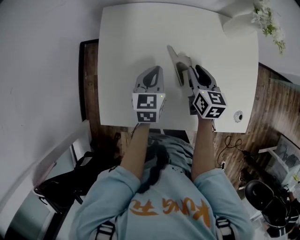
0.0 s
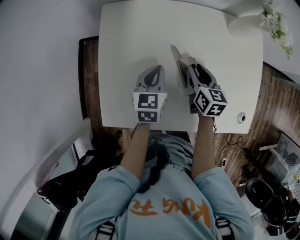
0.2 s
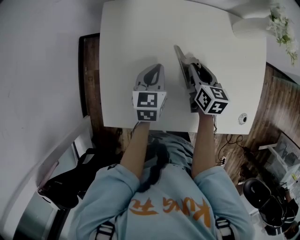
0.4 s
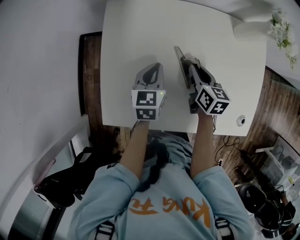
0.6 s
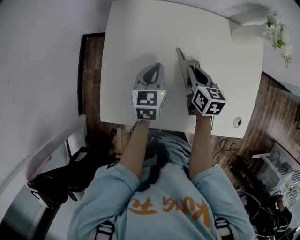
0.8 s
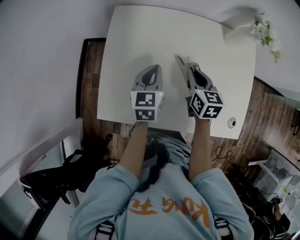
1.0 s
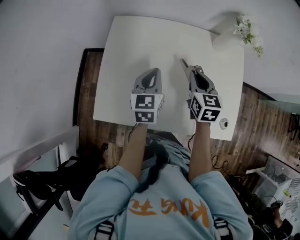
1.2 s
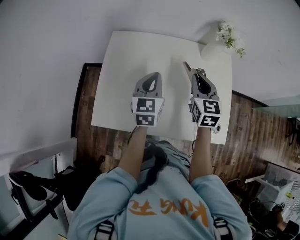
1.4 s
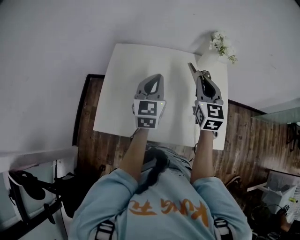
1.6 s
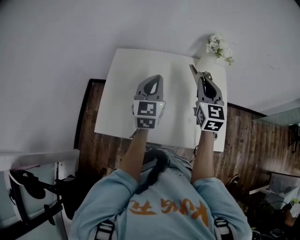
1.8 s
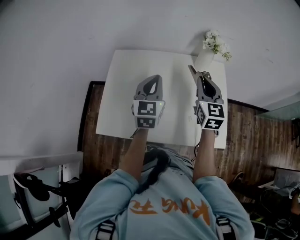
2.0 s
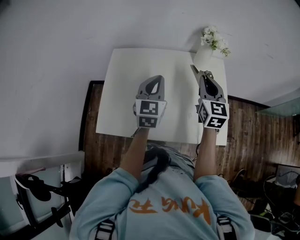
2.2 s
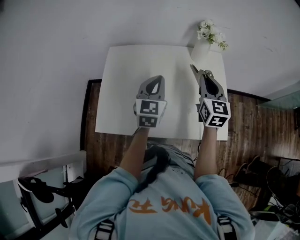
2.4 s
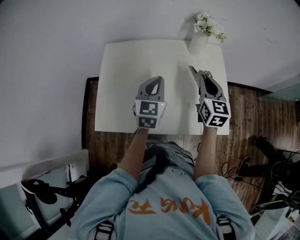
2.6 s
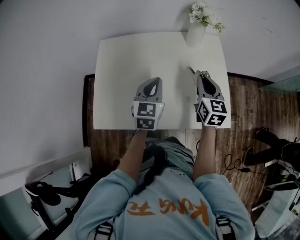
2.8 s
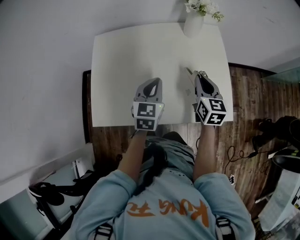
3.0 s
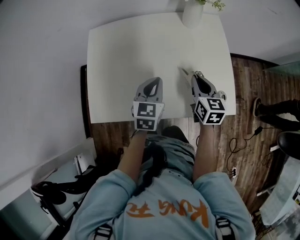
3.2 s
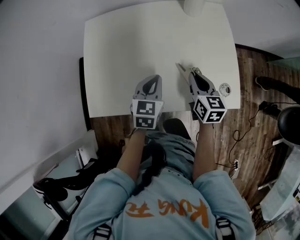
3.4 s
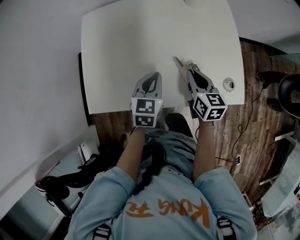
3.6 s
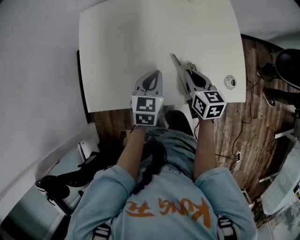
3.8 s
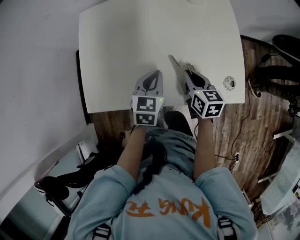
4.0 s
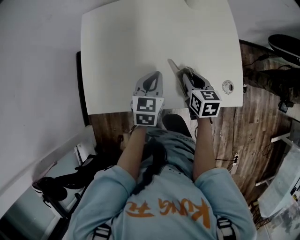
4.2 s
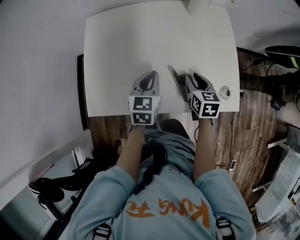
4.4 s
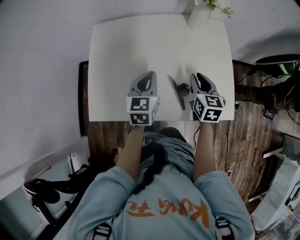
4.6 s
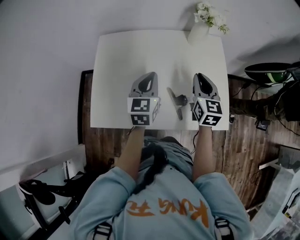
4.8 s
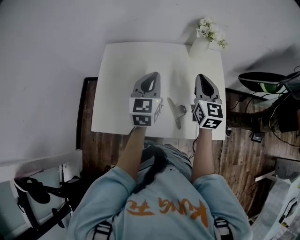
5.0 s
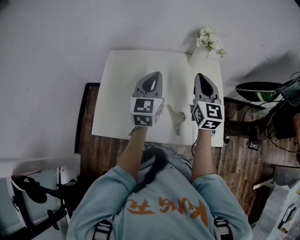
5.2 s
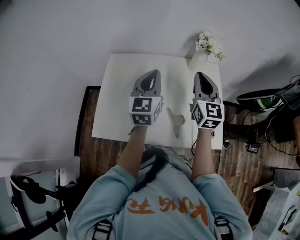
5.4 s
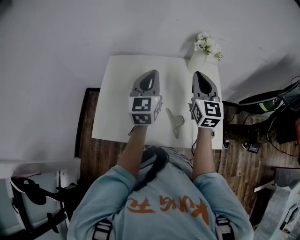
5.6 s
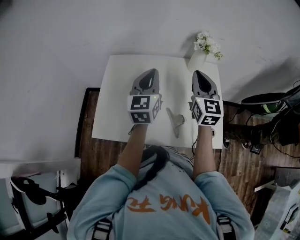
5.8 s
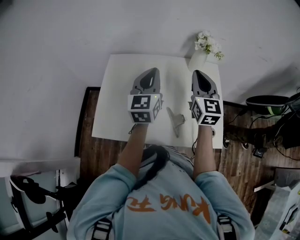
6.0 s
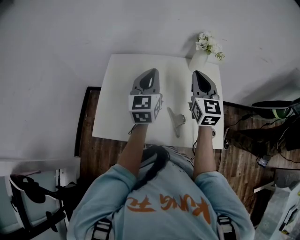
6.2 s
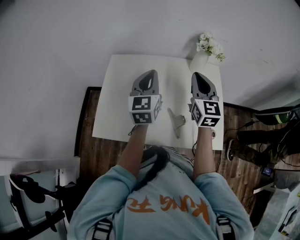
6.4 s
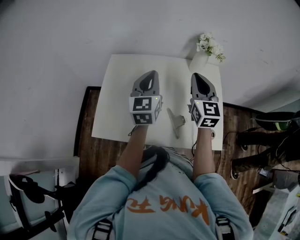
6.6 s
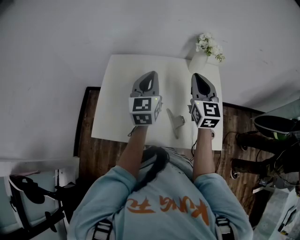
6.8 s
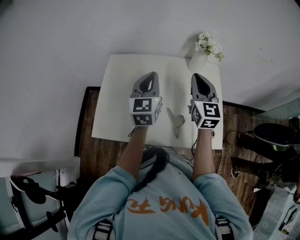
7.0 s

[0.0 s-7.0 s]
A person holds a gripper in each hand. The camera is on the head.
0.0 to 1.4 s: Both grippers travel together upward, approximately 15 cm. The right gripper rotates roughly 30 degrees, and closes its fingers.
1.4 to 2.8 s: The right gripper moves to the right and backward, some 10 cm. Meanwhile the left gripper heads to the right, covering some 10 cm, and goes upward and returns, some 5 cm each way.
2.8 to 4.2 s: Both grippers move downward, approximately 15 cm. The right gripper rotates approximately 30 degrees.
4.2 to 5.6 s: The two grippers go roughly 25 cm upward. The left gripper tips its fingers upward by about 30 degrees, while the right gripper tips its fingers upward by about 40 degrees, and closes its fingers.
5.6 to 7.0 s: The grippers stay close to where they were, moving slightly.

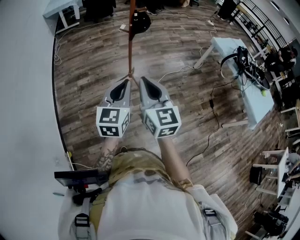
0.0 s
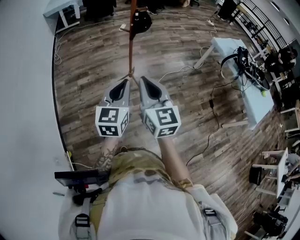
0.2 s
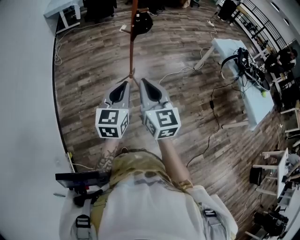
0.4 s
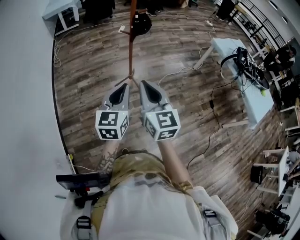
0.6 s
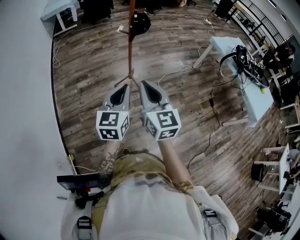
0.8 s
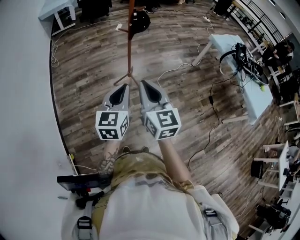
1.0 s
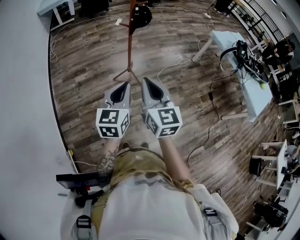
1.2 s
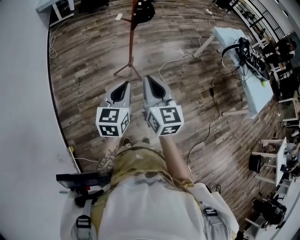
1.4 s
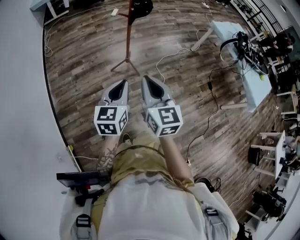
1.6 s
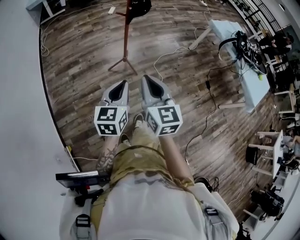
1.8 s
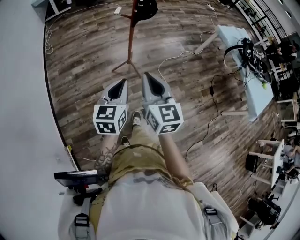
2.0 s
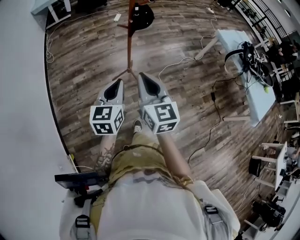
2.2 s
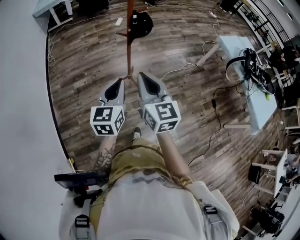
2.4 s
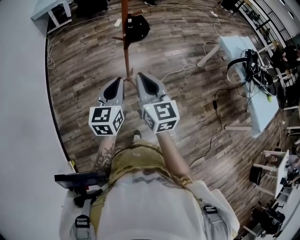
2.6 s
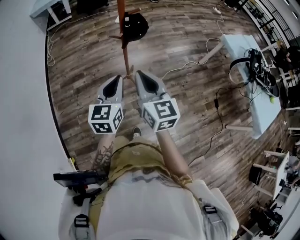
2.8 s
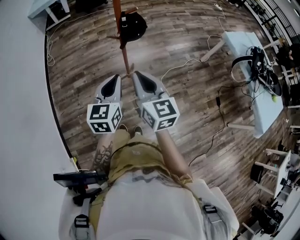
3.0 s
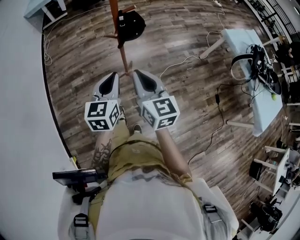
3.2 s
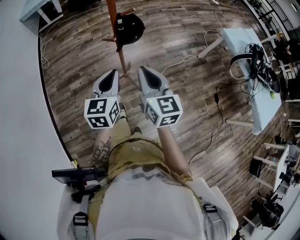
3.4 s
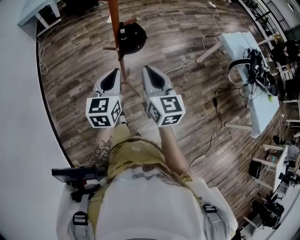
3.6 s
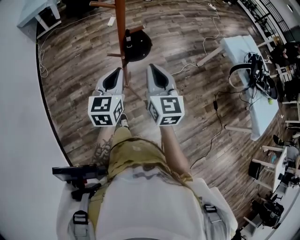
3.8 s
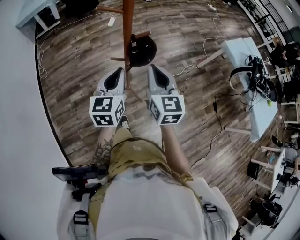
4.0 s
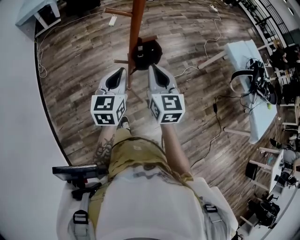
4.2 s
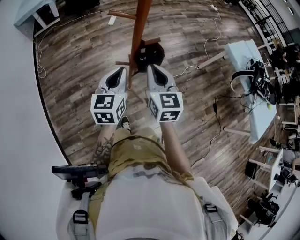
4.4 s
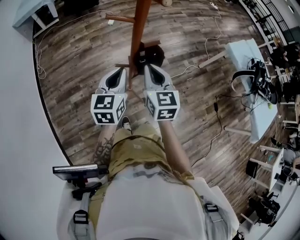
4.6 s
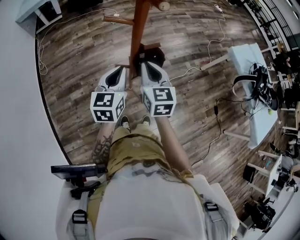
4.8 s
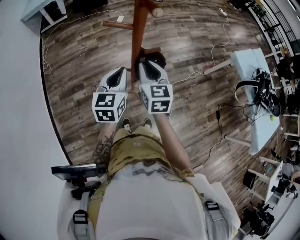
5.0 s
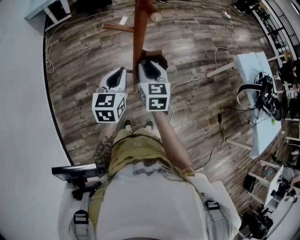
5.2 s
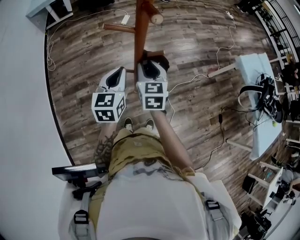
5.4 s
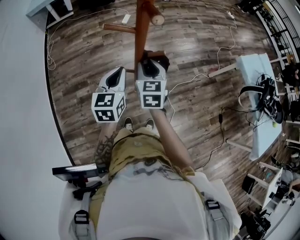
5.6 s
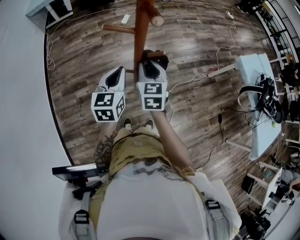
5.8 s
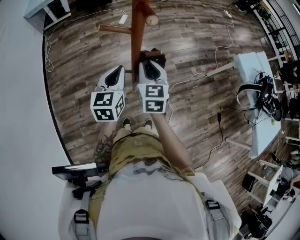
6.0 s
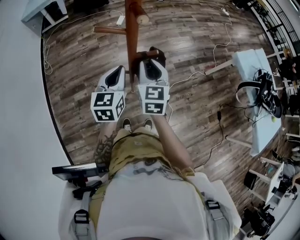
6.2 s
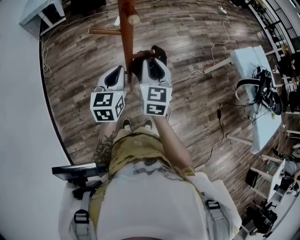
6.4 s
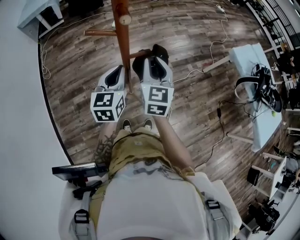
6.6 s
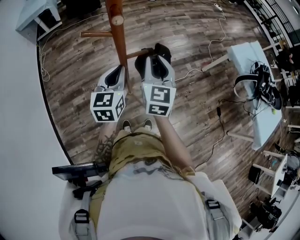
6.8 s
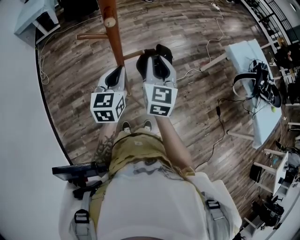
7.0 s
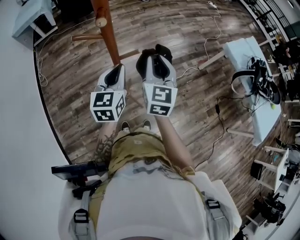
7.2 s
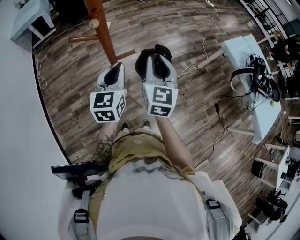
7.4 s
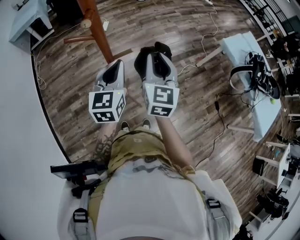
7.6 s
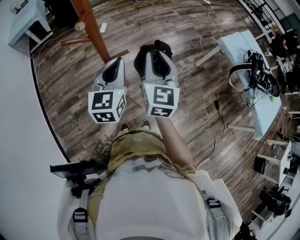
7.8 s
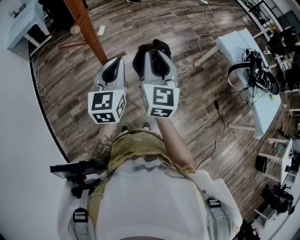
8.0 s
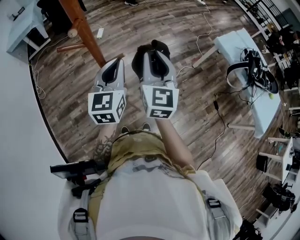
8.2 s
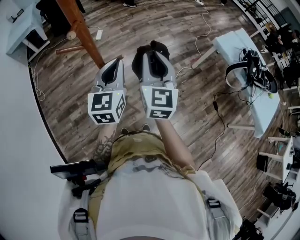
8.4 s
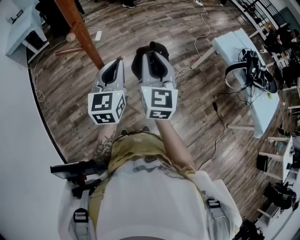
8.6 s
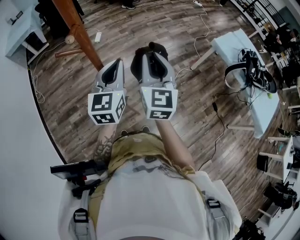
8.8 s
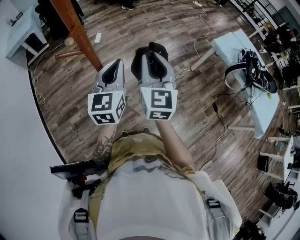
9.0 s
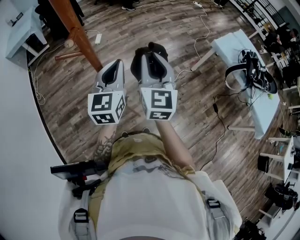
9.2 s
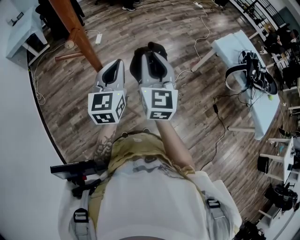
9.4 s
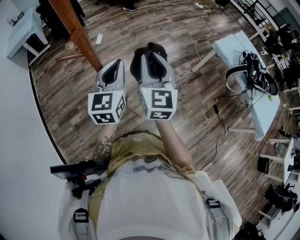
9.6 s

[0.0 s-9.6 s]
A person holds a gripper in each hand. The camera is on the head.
0.0 to 1.6 s: The right gripper travels downward by roughly 5 cm. Meanwhile the left gripper goes approximately 10 cm downward and to the left.
1.6 to 3.2 s: The two grippers go some 30 cm forward.
3.2 to 4.8 s: The two grippers go about 25 cm forward.
4.8 to 6.4 s: The grippers make only small movements.
6.4 to 8.0 s: The grippers both shift to the right and upward by roughly 15 cm.
8.0 to 9.6 s: The grippers stay close to where they were, moving slightly.

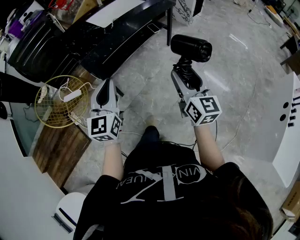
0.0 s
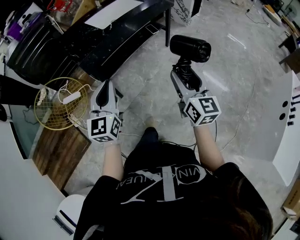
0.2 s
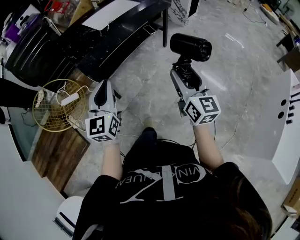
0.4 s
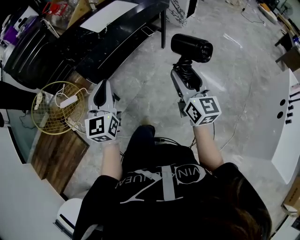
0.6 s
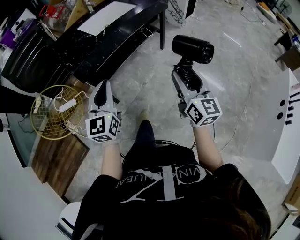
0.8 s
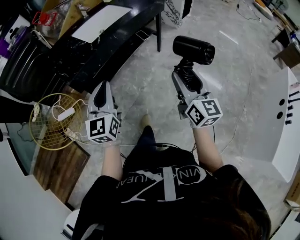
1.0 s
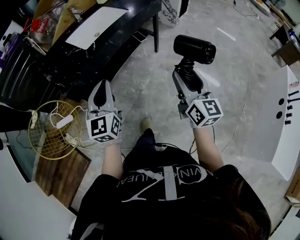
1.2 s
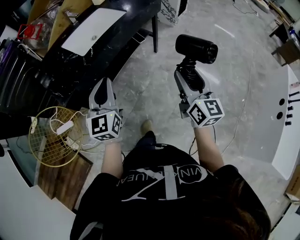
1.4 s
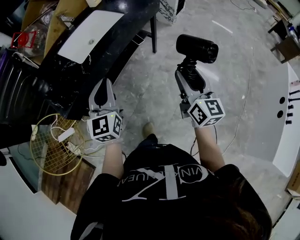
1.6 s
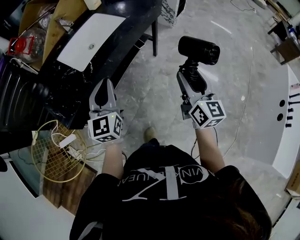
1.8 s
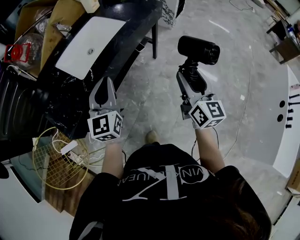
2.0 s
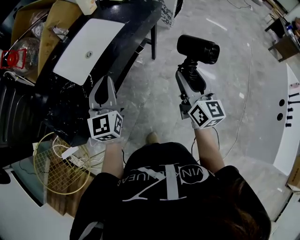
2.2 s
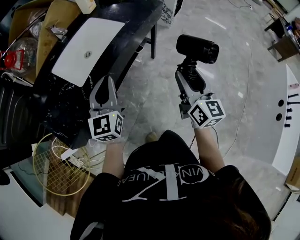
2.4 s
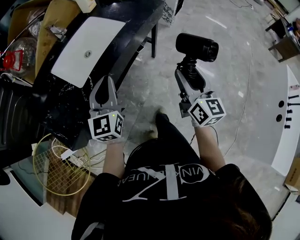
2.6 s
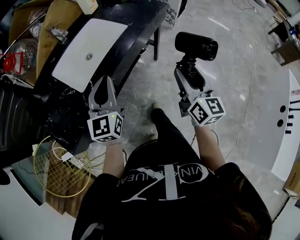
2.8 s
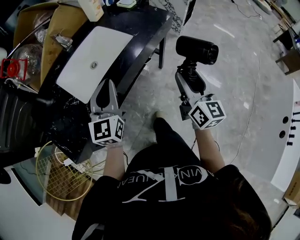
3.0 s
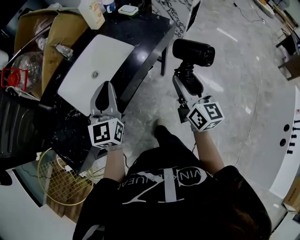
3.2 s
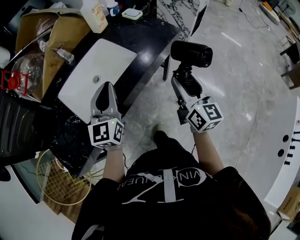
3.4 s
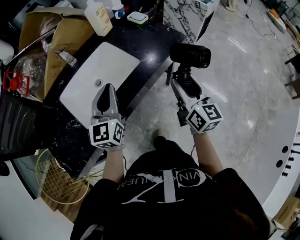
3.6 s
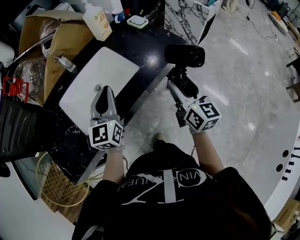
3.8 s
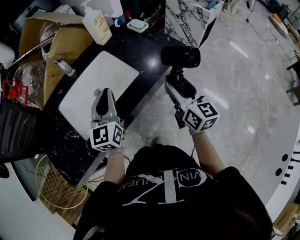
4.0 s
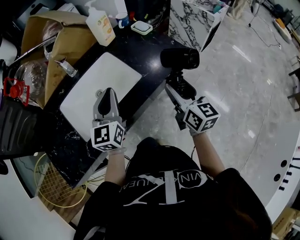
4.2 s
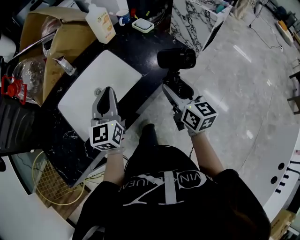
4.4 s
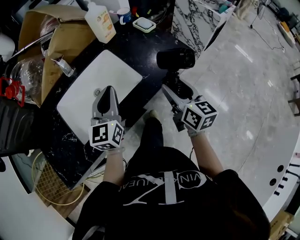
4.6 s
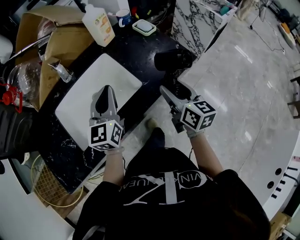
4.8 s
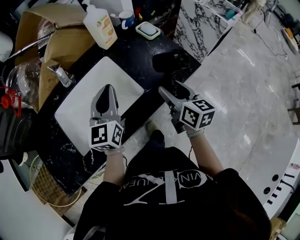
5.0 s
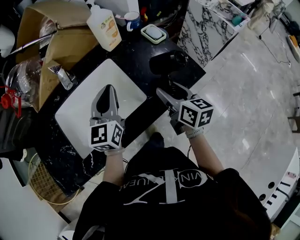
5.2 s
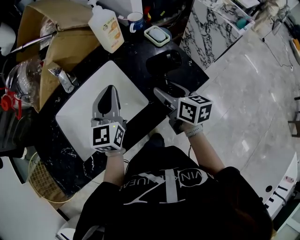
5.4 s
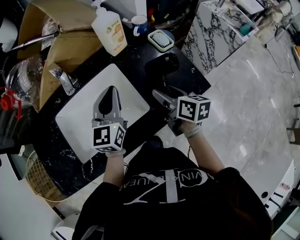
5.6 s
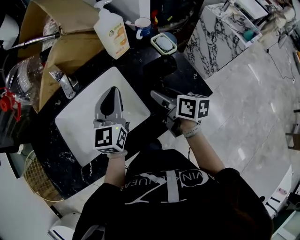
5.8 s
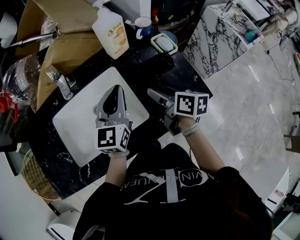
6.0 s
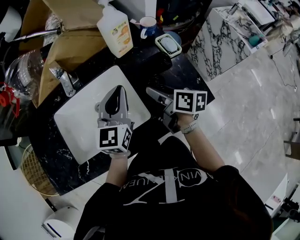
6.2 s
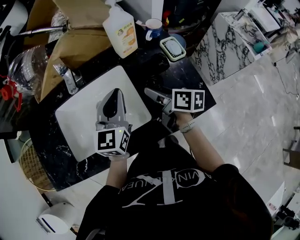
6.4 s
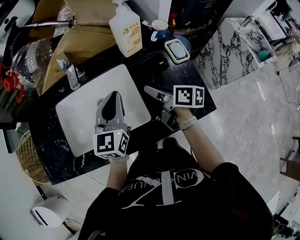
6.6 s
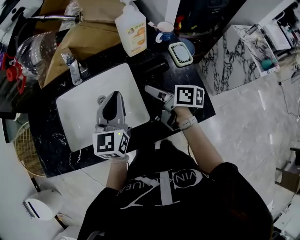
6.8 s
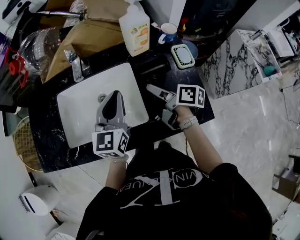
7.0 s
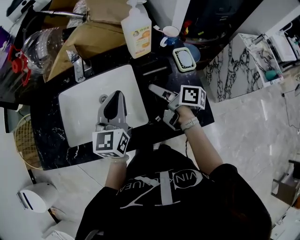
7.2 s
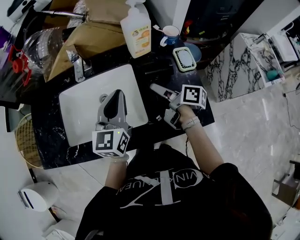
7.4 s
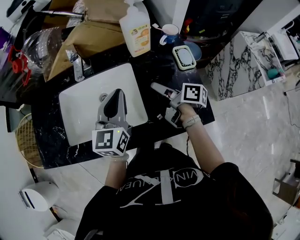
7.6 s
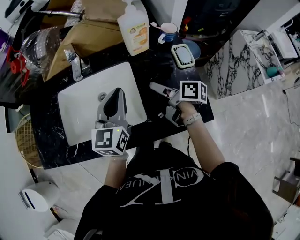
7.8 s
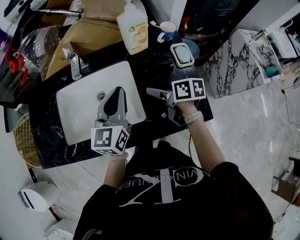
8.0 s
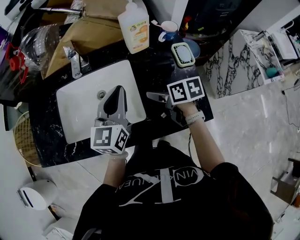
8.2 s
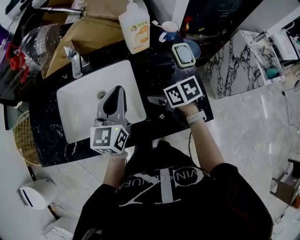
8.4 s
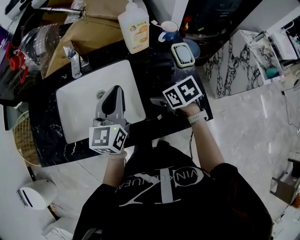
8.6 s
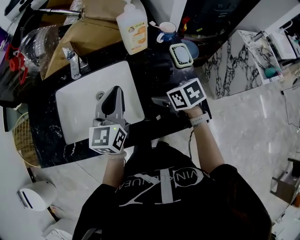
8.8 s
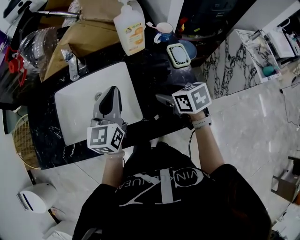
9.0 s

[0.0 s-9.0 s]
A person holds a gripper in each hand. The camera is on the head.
0.0 to 1.6 s: The two grippers go approximately 30 cm forward.
1.6 to 3.0 s: The grippers both shift forward by about 25 cm.
3.0 to 4.4 s: The two grippers go approximately 20 cm forward. The right gripper turns by some 20 degrees.
4.4 to 6.0 s: The two grippers go approximately 20 cm forward. The right gripper rotates roughly 40 degrees.
6.0 to 7.6 s: The right gripper travels forward by roughly 5 cm, and rotates some 30 degrees.
7.6 to 9.0 s: The right gripper moves about 5 cm, and rotates around the line of its fingers by some 50 degrees, counterclockwise from behind.
